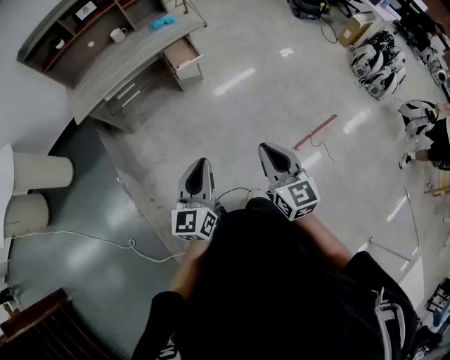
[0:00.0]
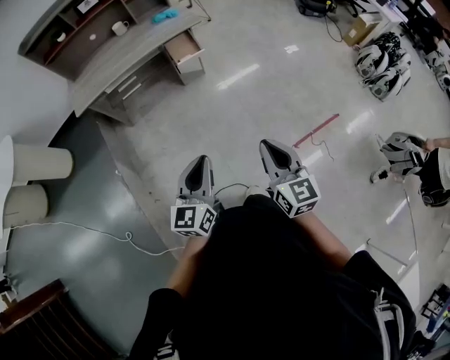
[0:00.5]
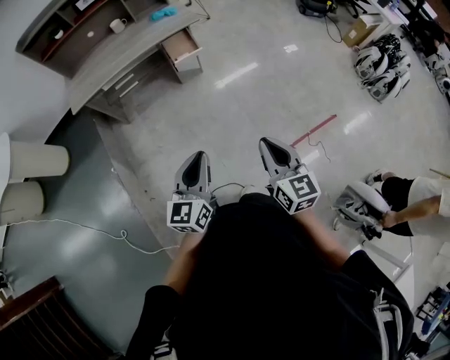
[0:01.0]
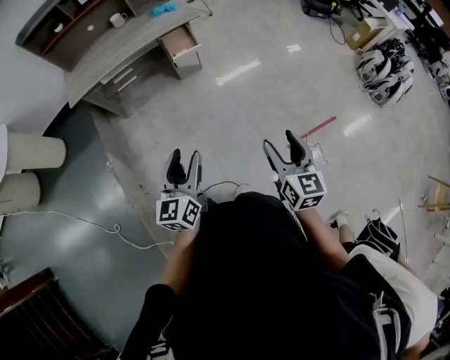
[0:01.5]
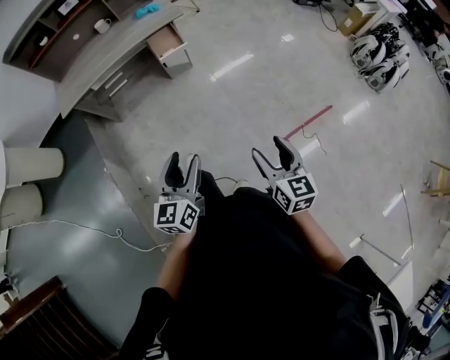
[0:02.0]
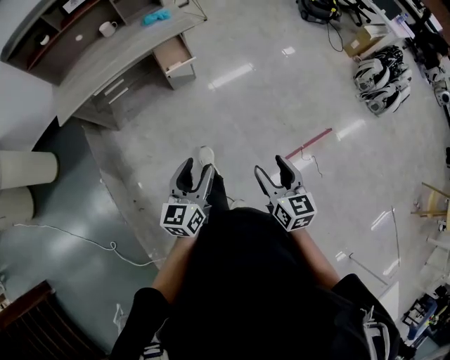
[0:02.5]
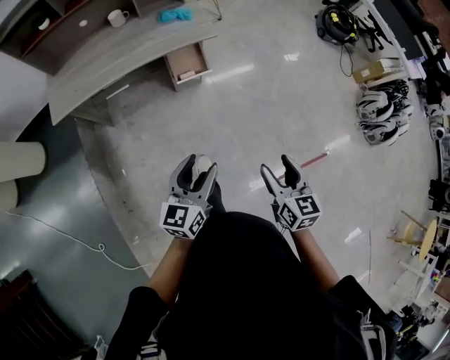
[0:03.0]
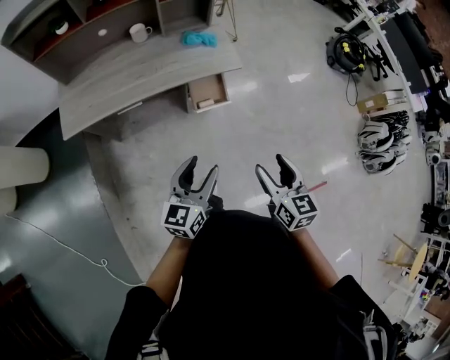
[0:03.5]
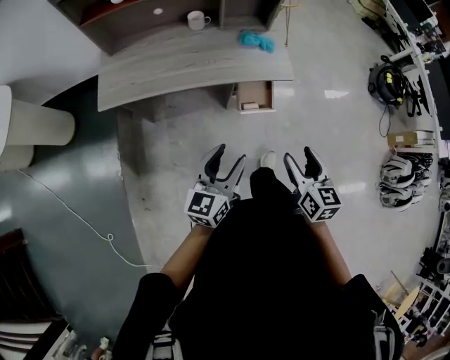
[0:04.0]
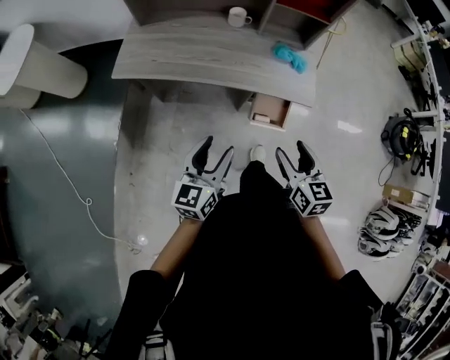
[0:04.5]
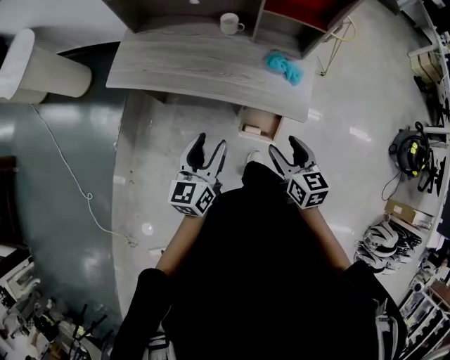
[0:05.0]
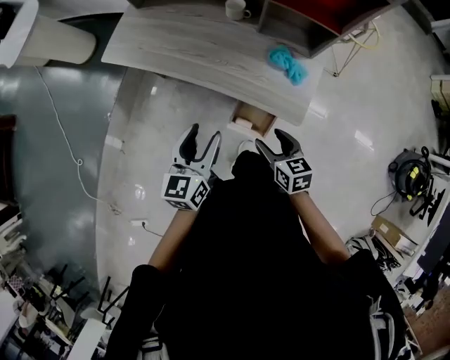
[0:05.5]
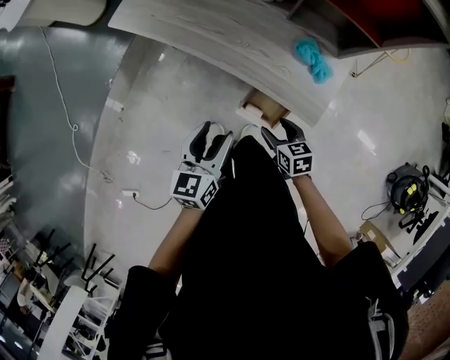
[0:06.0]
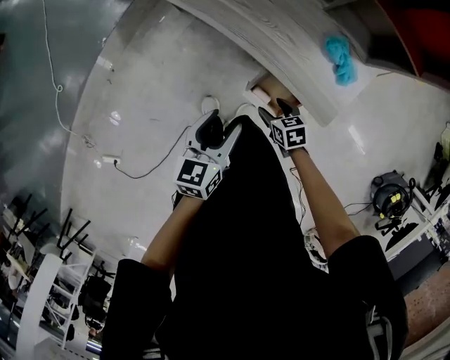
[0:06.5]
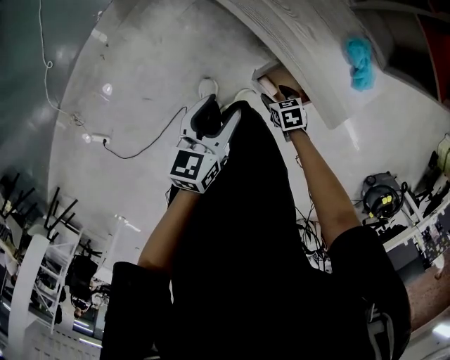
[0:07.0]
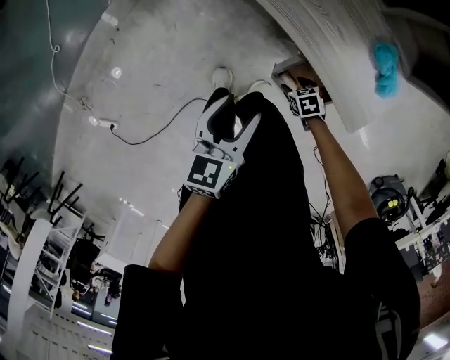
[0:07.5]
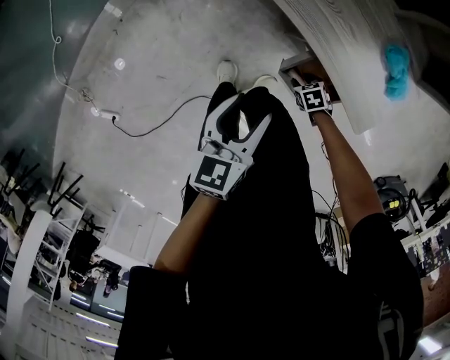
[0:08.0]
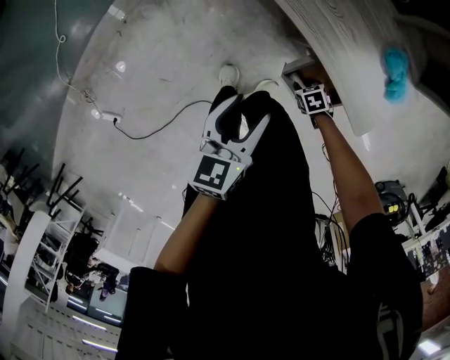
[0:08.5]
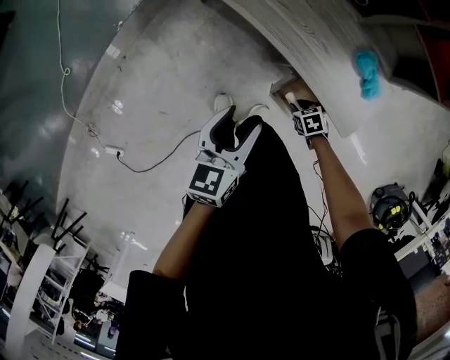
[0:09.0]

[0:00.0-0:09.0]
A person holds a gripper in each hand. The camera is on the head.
0:00.0 to 0:02.0: The left gripper travels to the right and downward by roughly 10 cm, and opens its fingers; the right gripper heads to the right and downward, covering roughly 15 cm, and opens.
0:02.0 to 0:04.5: The two grippers travel together, about 60 cm. The right gripper swivels approximately 30 degrees; the left gripper turns by some 30 degrees.
0:04.5 to 0:07.0: The right gripper shifts some 40 cm downward, and angles its fingers downward, by some 40 degrees, while the left gripper is displaced downward by approximately 20 cm, and swivels about 40 degrees.
0:07.0 to 0:09.0: The right gripper reaches approximately 10 cm downward, then returns, and closes. The left gripper travels upward by roughly 5 cm.

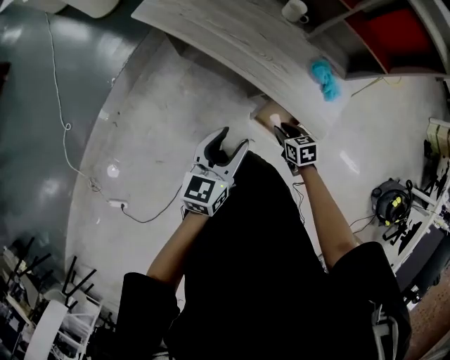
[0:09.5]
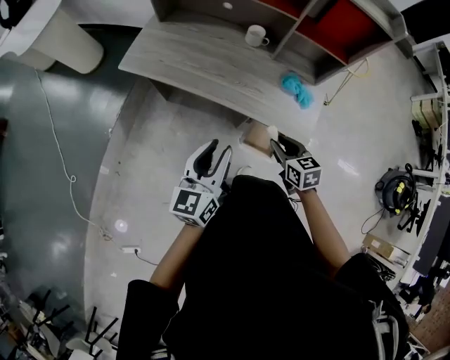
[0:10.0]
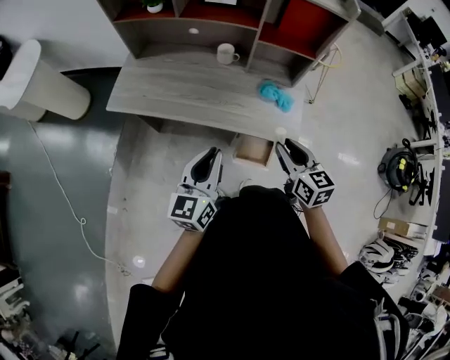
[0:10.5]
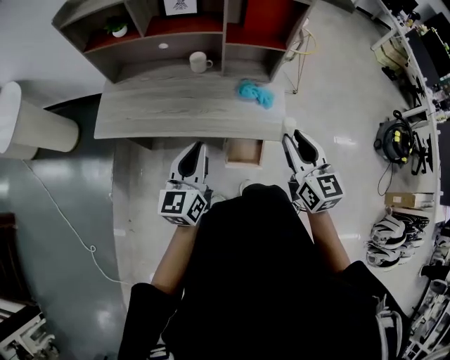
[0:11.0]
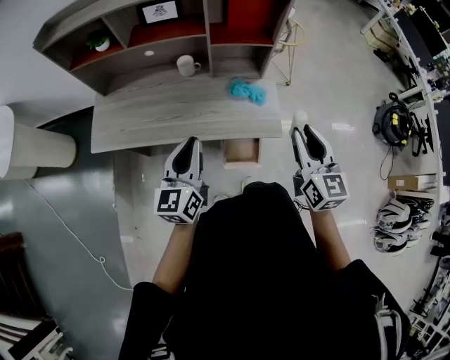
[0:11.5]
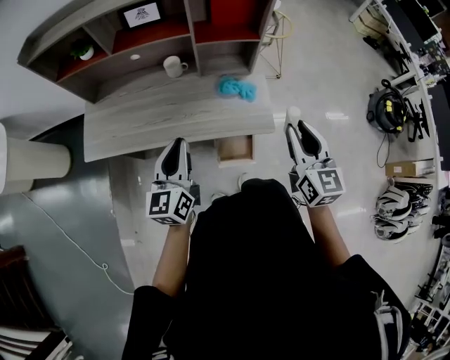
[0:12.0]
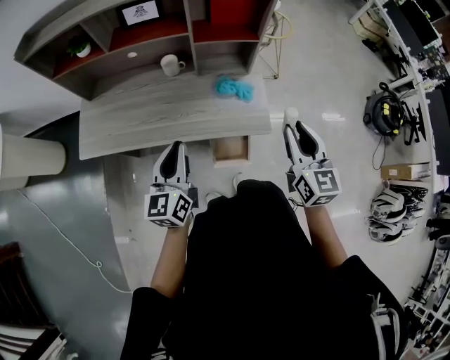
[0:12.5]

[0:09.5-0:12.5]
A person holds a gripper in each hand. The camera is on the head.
0:09.5 to 0:11.0: The left gripper shifts some 10 cm upward, swivels some 20 degrees, and closes. Meanwhile the right gripper is displaced upward by about 35 cm, and points its fingers some 40 degrees further upward.
0:11.0 to 0:12.5: The right gripper shifts about 5 cm to the right.

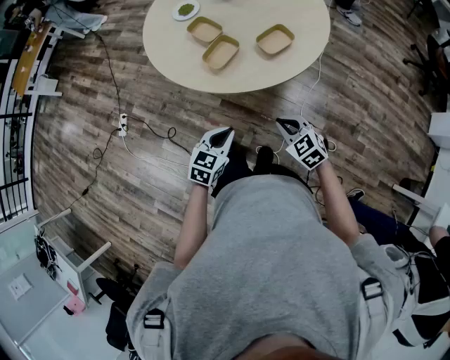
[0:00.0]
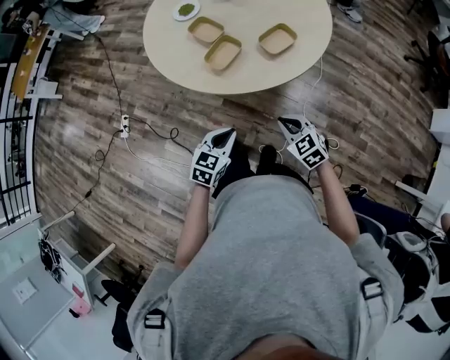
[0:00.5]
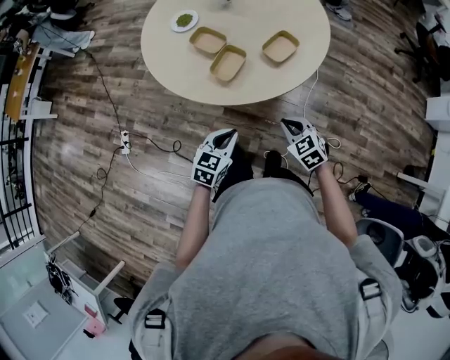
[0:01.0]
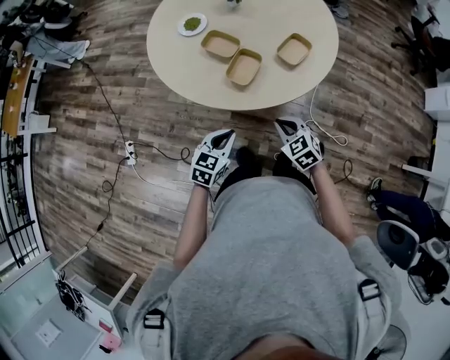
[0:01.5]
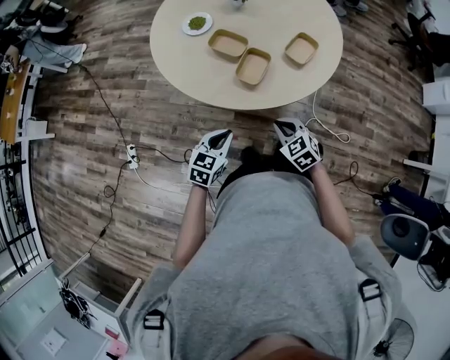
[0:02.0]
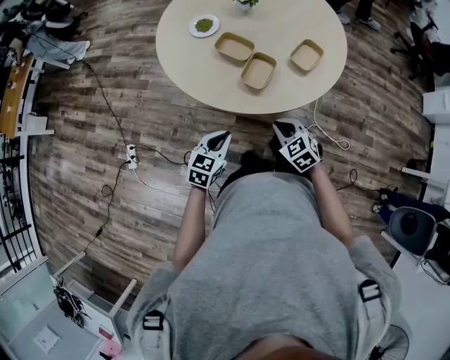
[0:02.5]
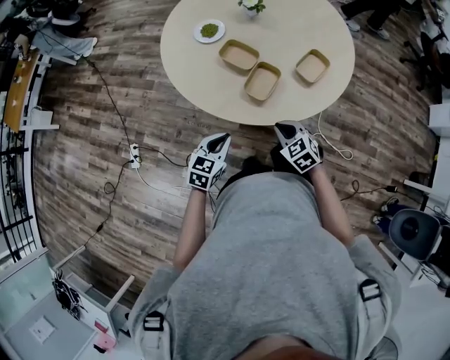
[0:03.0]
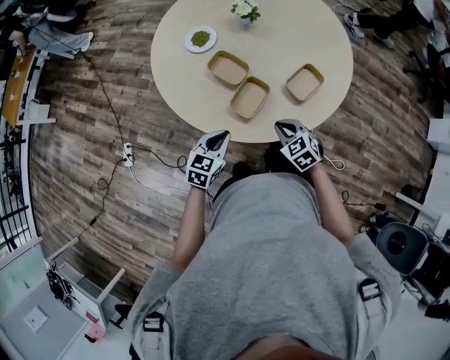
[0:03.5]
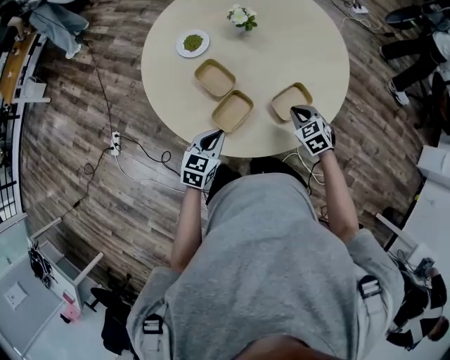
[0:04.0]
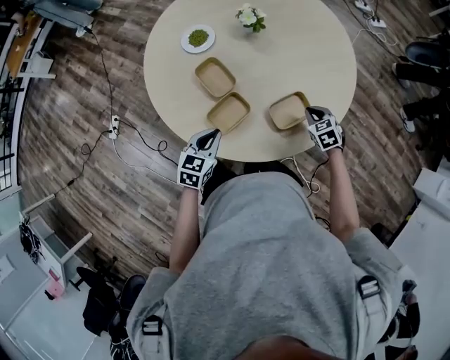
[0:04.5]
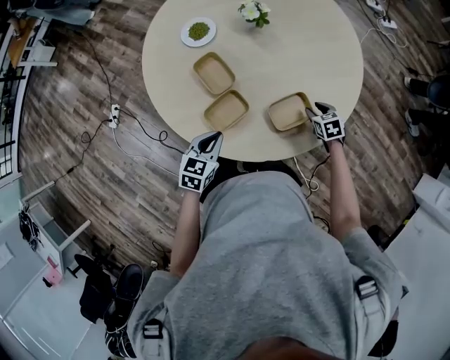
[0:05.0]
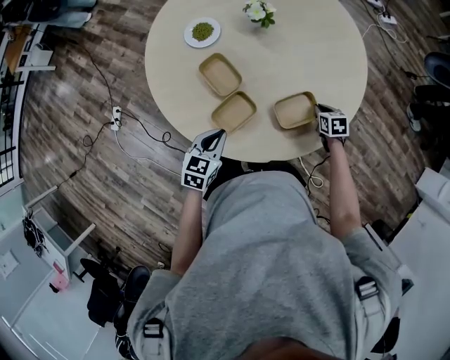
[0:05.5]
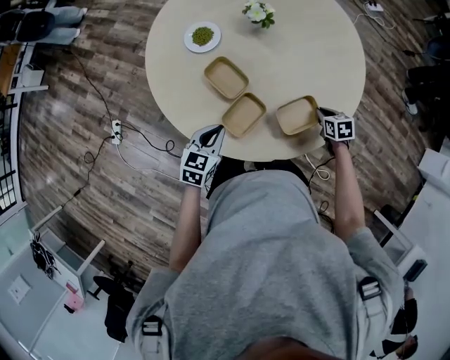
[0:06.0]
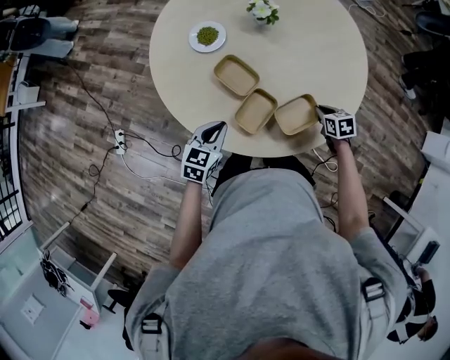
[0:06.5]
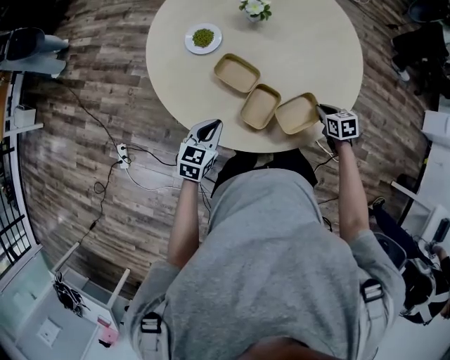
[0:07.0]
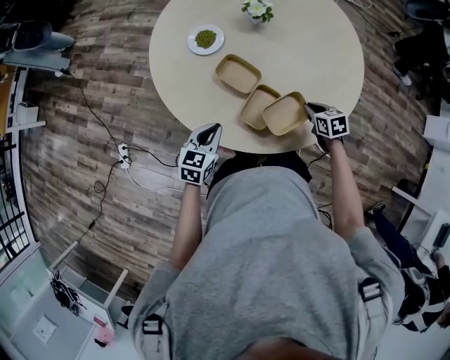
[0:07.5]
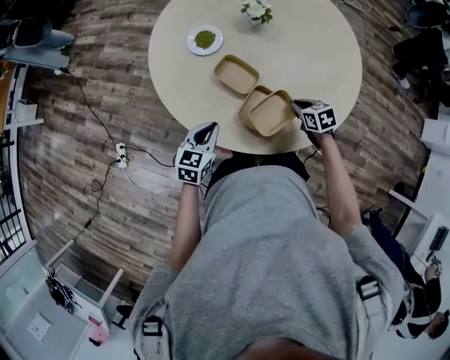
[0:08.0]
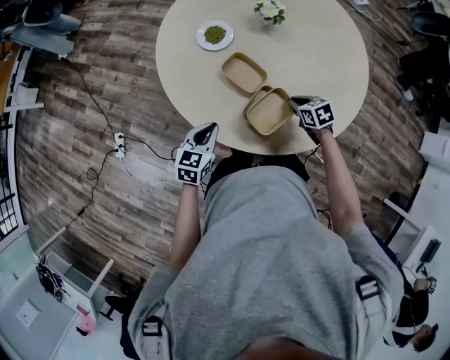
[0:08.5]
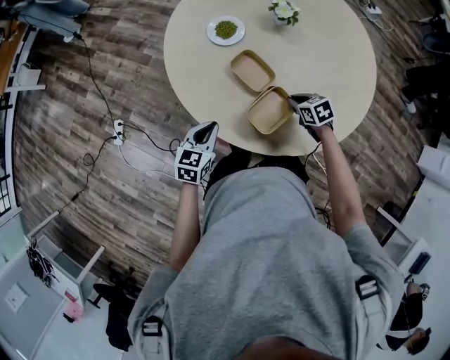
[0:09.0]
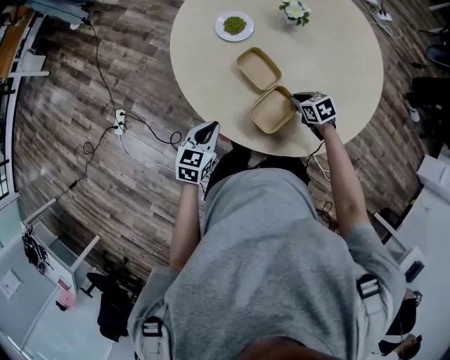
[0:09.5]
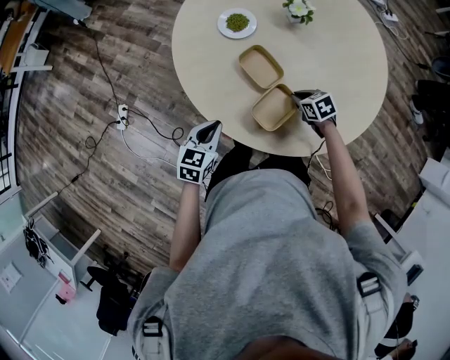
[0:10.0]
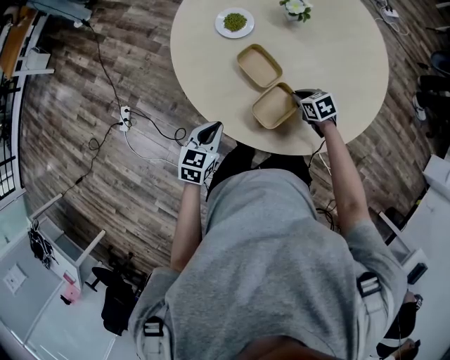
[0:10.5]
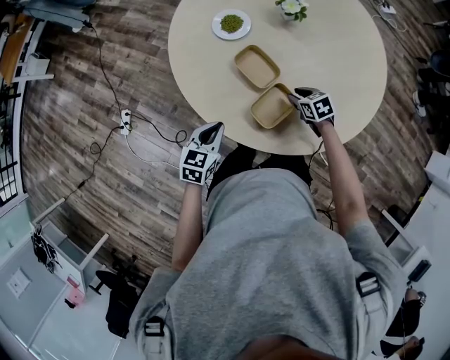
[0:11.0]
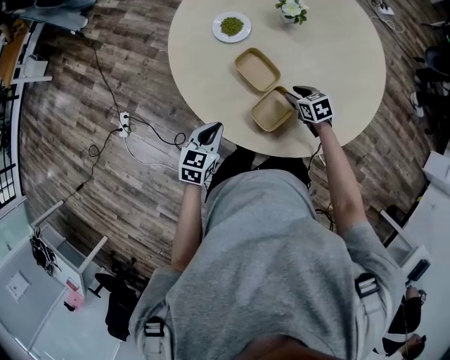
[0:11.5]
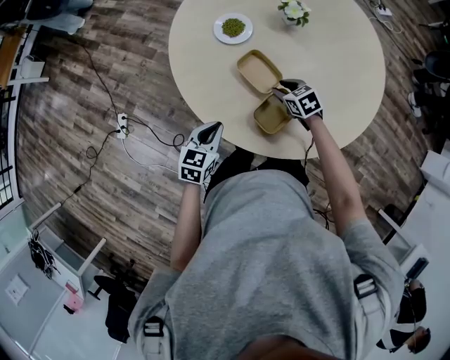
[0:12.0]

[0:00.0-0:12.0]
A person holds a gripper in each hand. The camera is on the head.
0:00.0 to 0:02.0: The left gripper is displaced to the left and forward by about 25 cm. The right gripper travels to the left by about 20 cm.
0:02.0 to 0:04.0: The left gripper travels forward and to the right by some 25 cm; the right gripper goes about 35 cm forward and to the right.
0:04.0 to 0:06.0: The right gripper moves downward, to the right and forward, approximately 15 cm, turns by about 30 degrees, and opens, then closes again. Meanwhile the left gripper heads forward, covering some 5 cm.
0:06.0 to 0:08.0: The left gripper heads to the left, covering approximately 10 cm; the right gripper heads to the left, covering about 20 cm.
0:08.0 to 0:10.0: The right gripper travels forward and to the left by about 10 cm, and rotates roughly 20 degrees.
0:10.0 to 0:12.0: The right gripper is displaced to the left and forward by approximately 5 cm, and opens up.

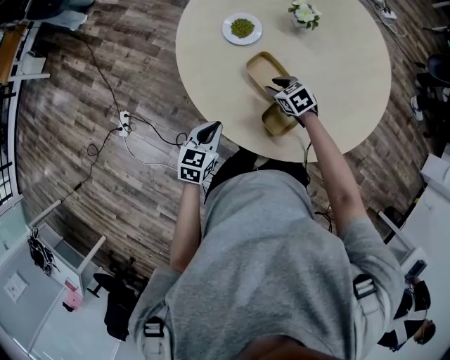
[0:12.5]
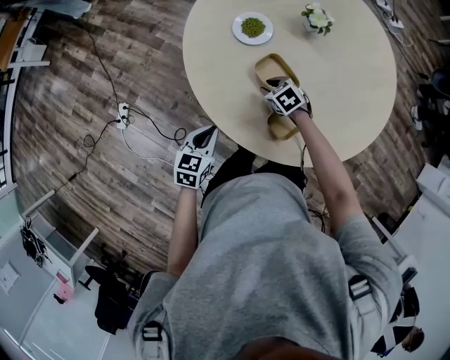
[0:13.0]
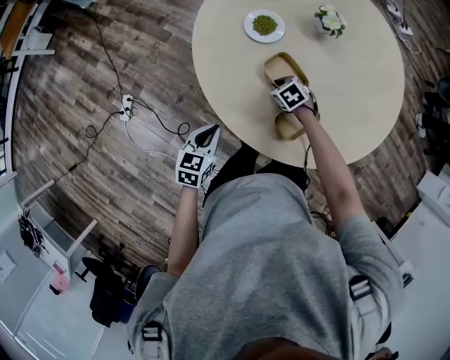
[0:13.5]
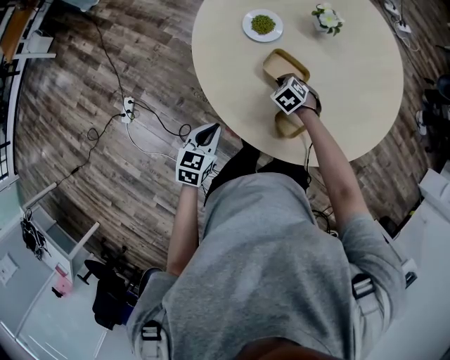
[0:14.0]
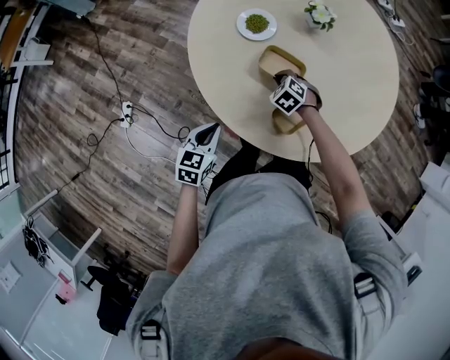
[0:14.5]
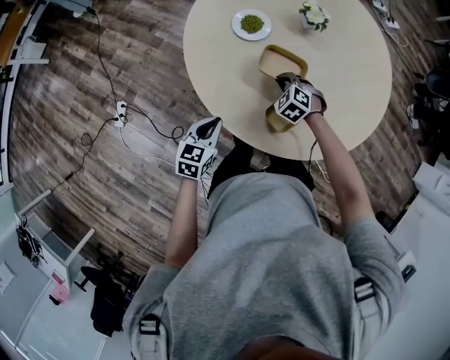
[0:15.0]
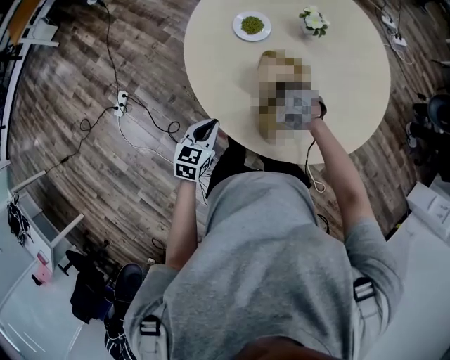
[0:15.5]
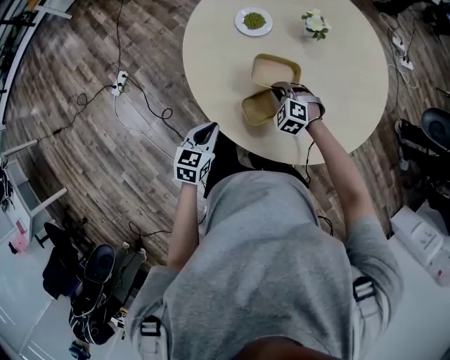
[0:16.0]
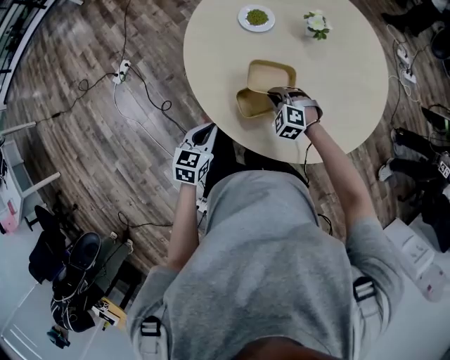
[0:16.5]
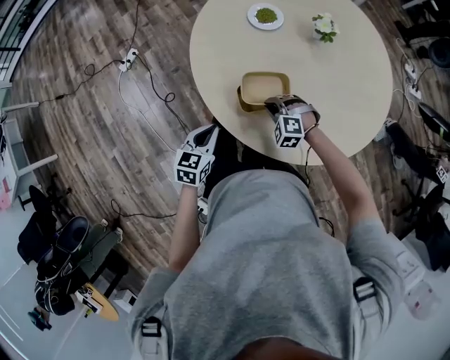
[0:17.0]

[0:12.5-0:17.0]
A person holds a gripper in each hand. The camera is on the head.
0:12.5 to 0:14.5: The right gripper changes its angle by some 30 degrees, and closes. Meanwhile the left gripper shifts by roughly 5 cm.
0:14.5 to 0:17.0: The right gripper changes place by some 20 cm, and twists some 60 degrees counterclockwise, seen from behind. The left gripper ends up about 25 cm from where it was, and turns by roughly 30 degrees.
